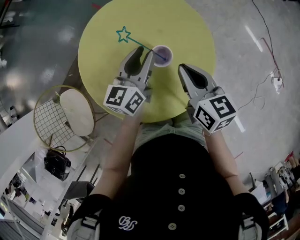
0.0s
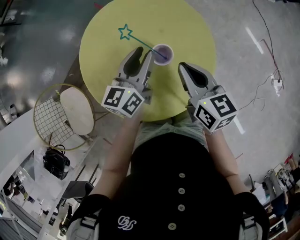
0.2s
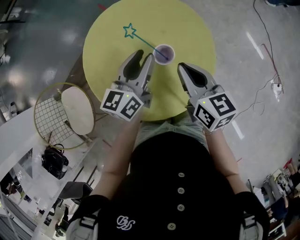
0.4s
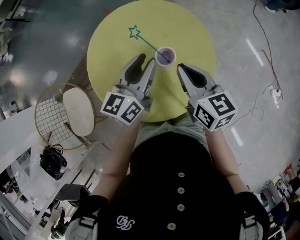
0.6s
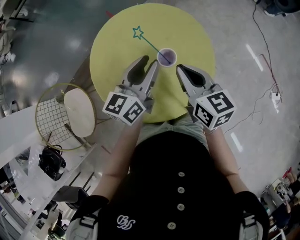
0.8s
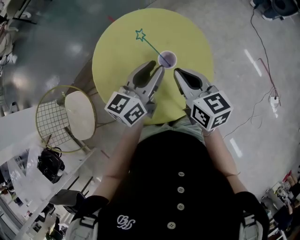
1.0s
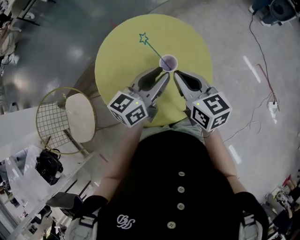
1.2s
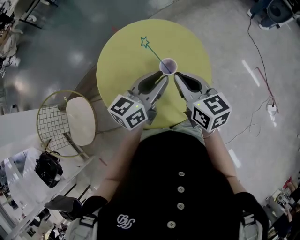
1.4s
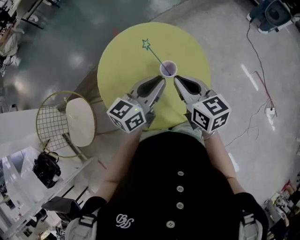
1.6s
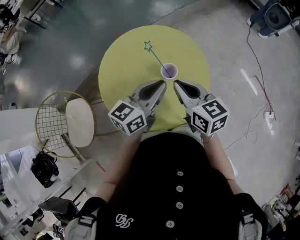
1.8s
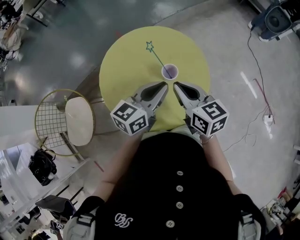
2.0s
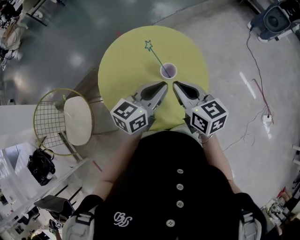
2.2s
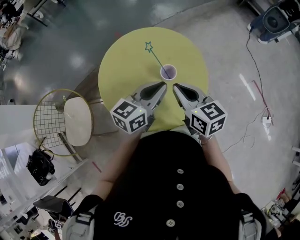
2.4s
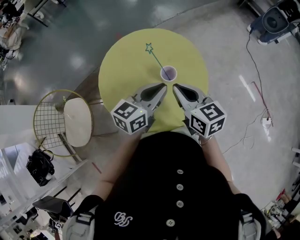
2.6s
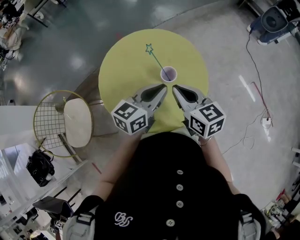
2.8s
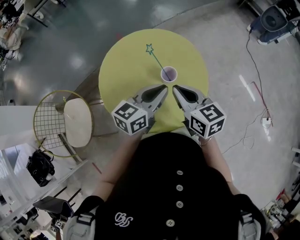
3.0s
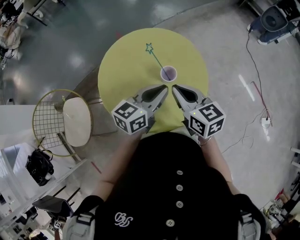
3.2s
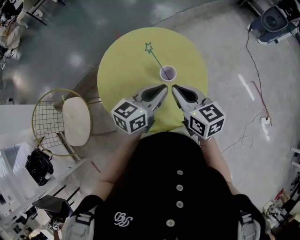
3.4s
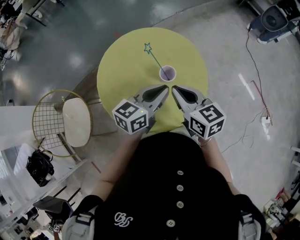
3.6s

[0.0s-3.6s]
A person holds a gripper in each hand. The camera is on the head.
0.0s to 1.8s: The right gripper is displaced upward by roughly 5 cm. The left gripper moves backward and upward, some 15 cm, and closes its fingers.
1.8s to 3.6s: The grippers move only a little.

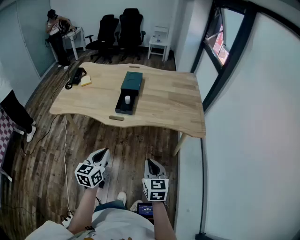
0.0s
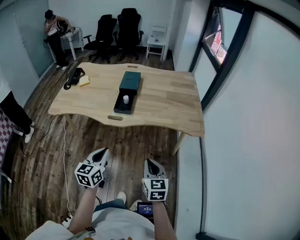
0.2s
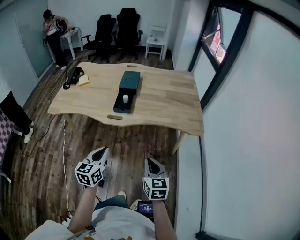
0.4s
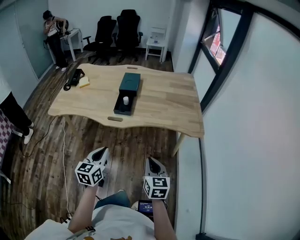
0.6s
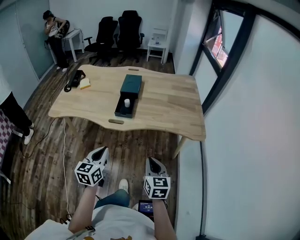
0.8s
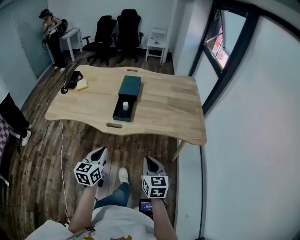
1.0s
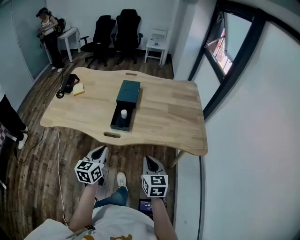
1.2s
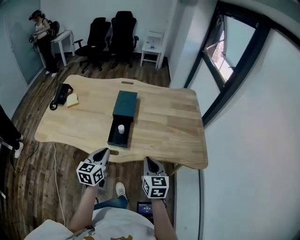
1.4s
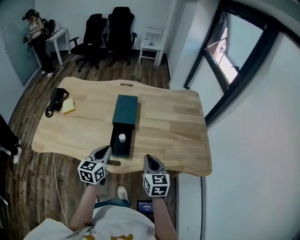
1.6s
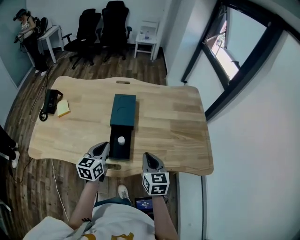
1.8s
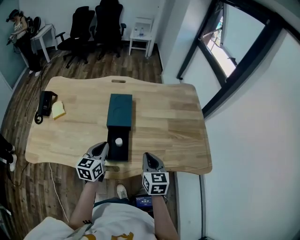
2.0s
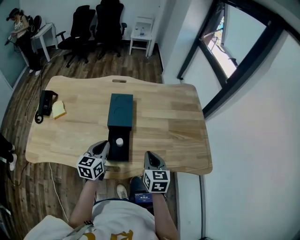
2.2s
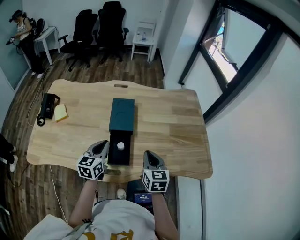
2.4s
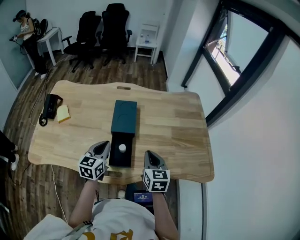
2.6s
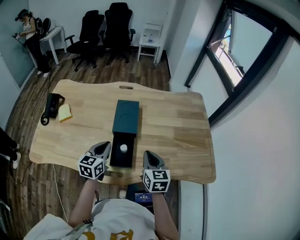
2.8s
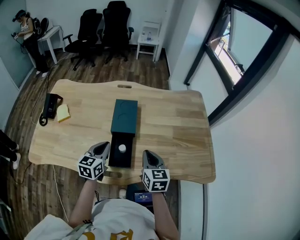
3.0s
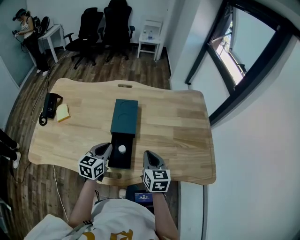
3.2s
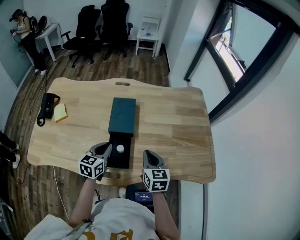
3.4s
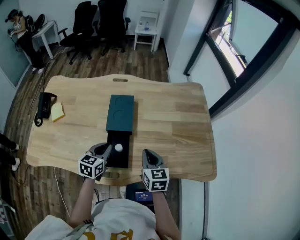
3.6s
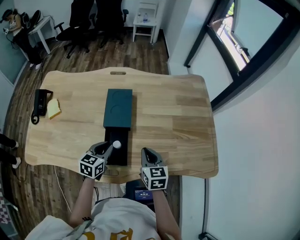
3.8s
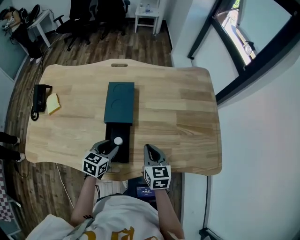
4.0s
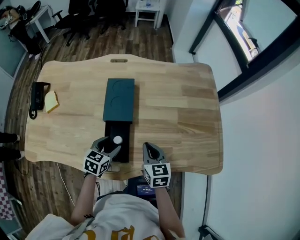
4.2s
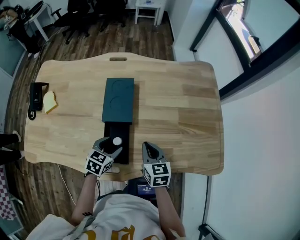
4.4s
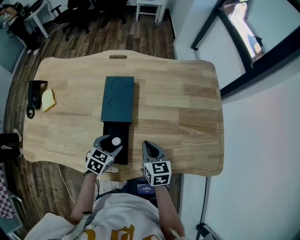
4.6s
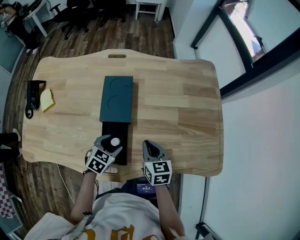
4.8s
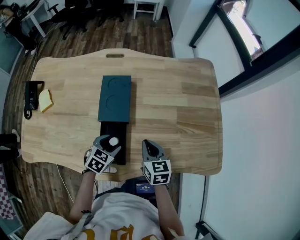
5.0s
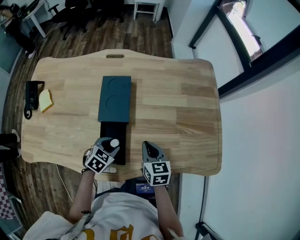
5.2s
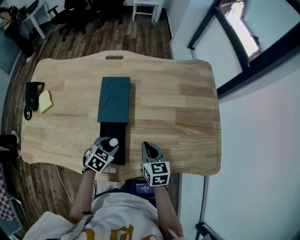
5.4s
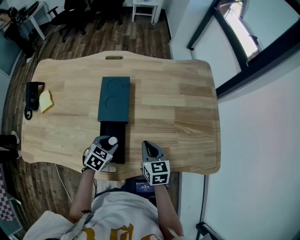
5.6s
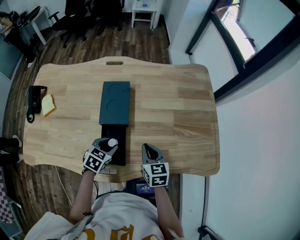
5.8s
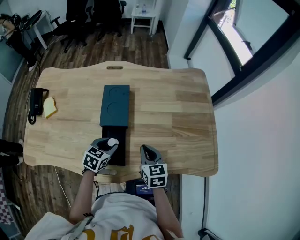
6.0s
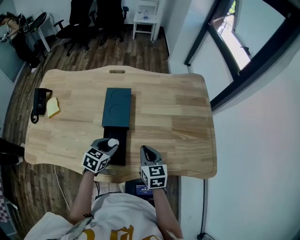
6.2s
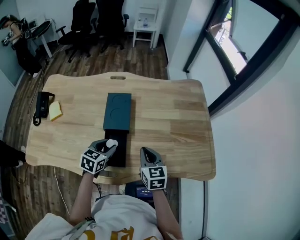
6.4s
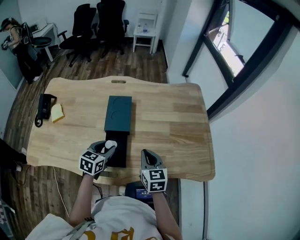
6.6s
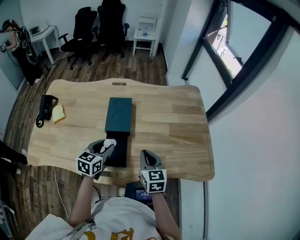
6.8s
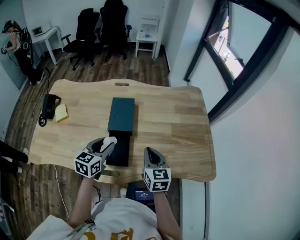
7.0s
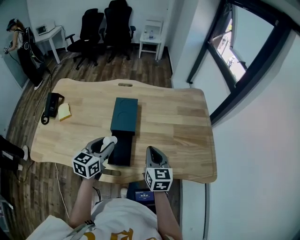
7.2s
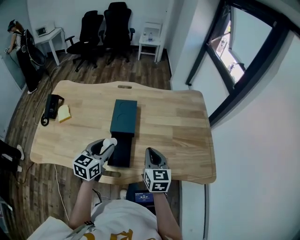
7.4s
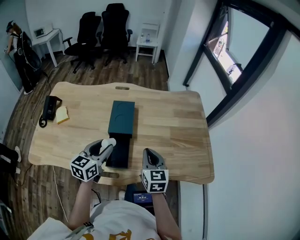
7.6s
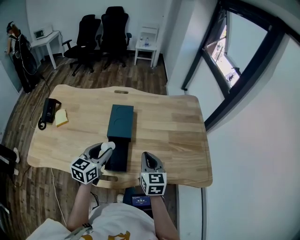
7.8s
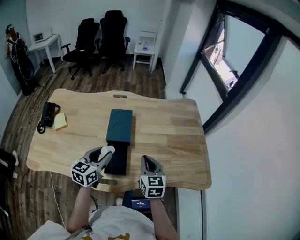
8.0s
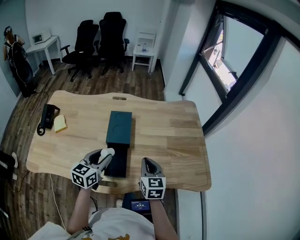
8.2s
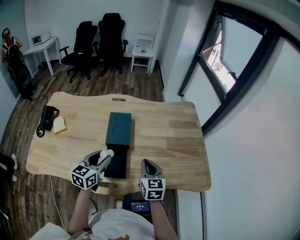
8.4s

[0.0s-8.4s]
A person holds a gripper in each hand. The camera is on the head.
0.0s to 1.4s: The two grippers go roughly 25 cm forward.
1.4s to 2.8s: Both grippers travel together forward, about 20 cm.
2.8s to 4.2s: The left gripper moves downward and to the right, some 15 cm, rotates roughly 20 degrees, and opens up. Meanwhile the right gripper travels downward by roughly 10 cm.
5.6s to 7.0s: The left gripper moves upward, some 20 cm, and changes its angle by roughly 30 degrees. The right gripper shifts about 10 cm upward.
7.0s to 8.4s: The grippers move only a little.

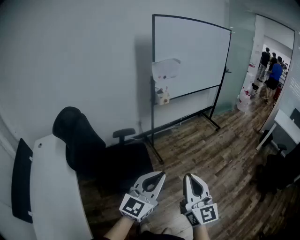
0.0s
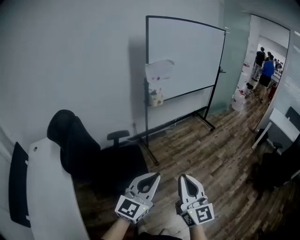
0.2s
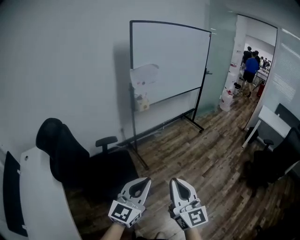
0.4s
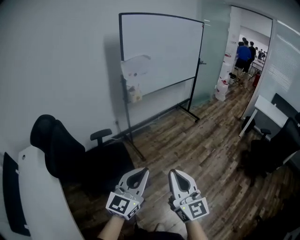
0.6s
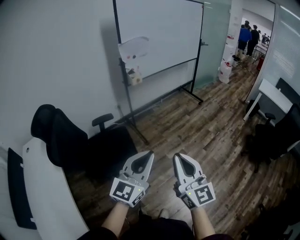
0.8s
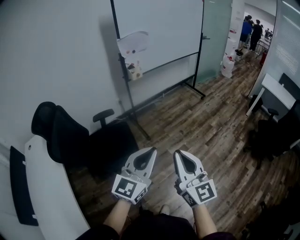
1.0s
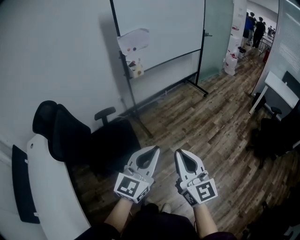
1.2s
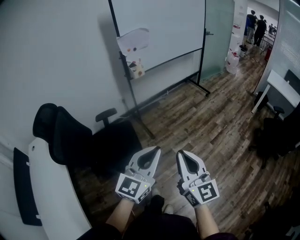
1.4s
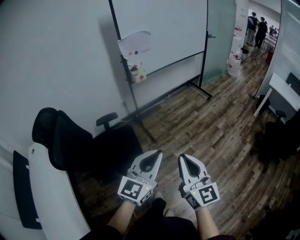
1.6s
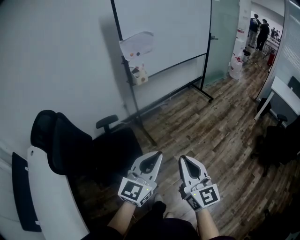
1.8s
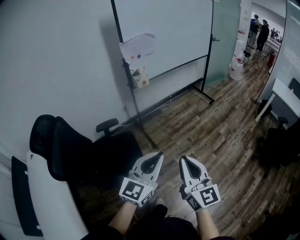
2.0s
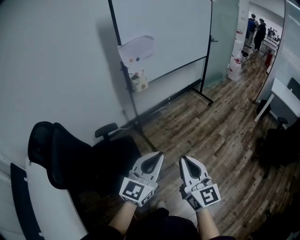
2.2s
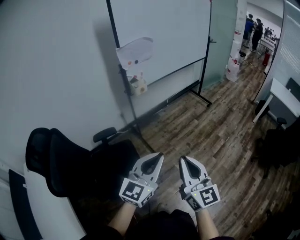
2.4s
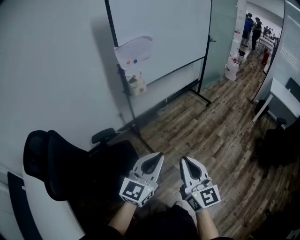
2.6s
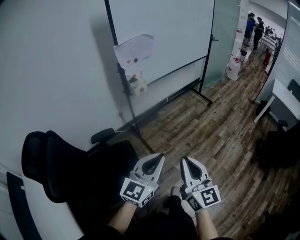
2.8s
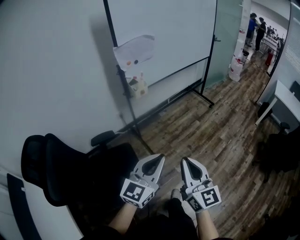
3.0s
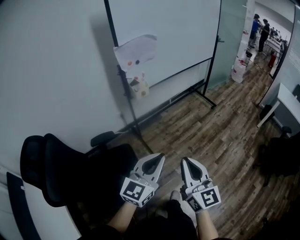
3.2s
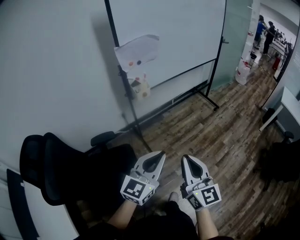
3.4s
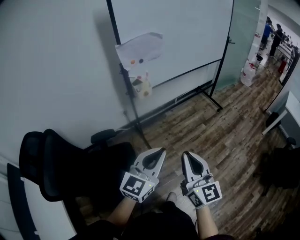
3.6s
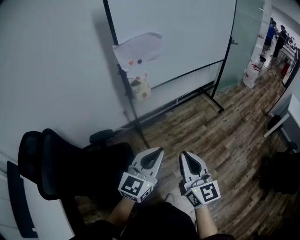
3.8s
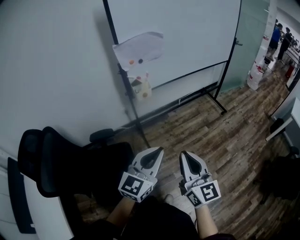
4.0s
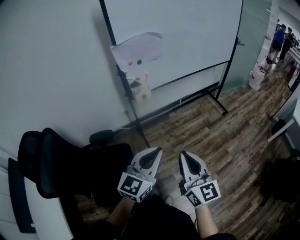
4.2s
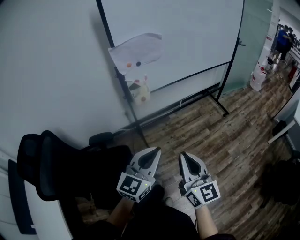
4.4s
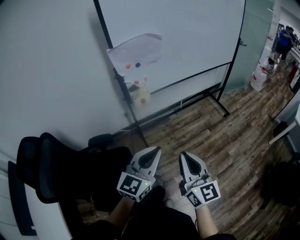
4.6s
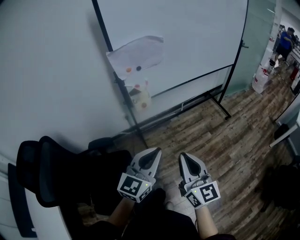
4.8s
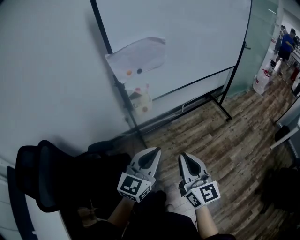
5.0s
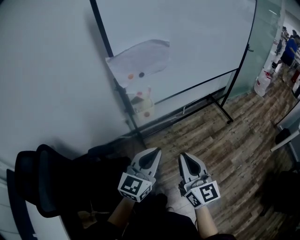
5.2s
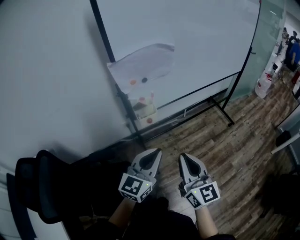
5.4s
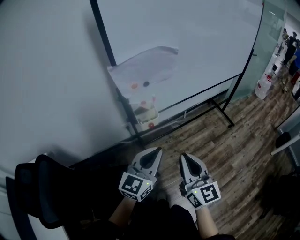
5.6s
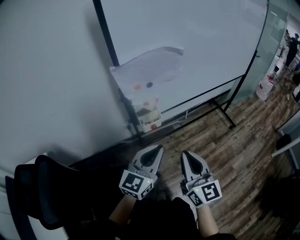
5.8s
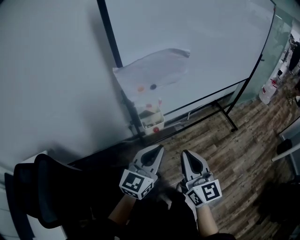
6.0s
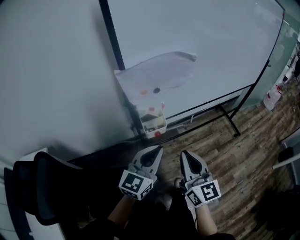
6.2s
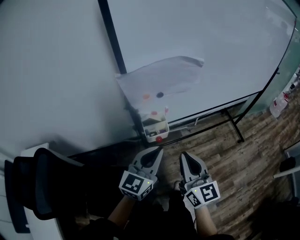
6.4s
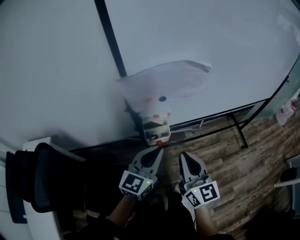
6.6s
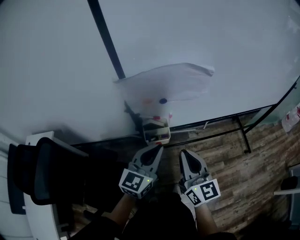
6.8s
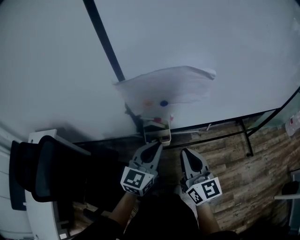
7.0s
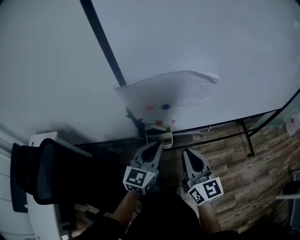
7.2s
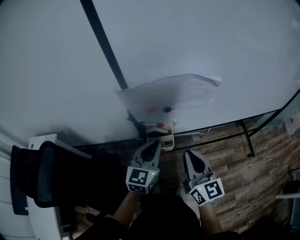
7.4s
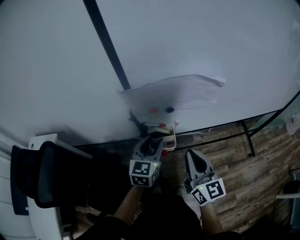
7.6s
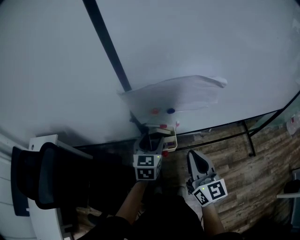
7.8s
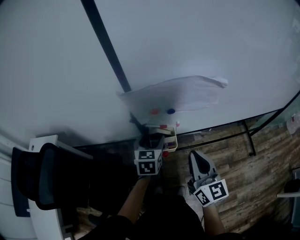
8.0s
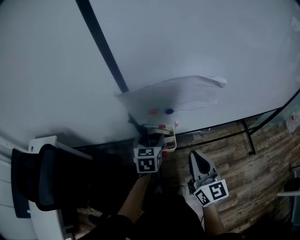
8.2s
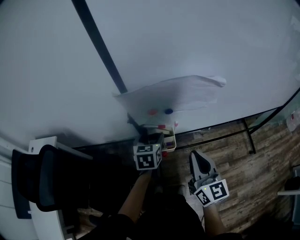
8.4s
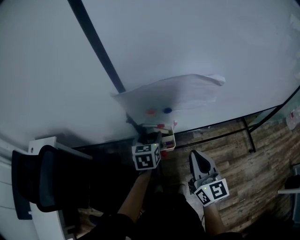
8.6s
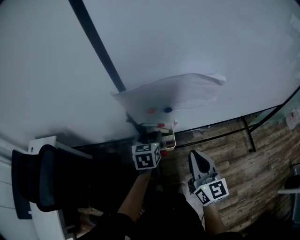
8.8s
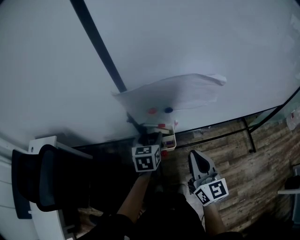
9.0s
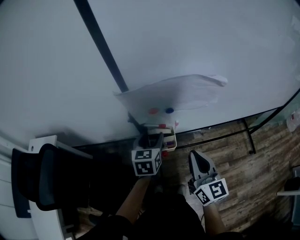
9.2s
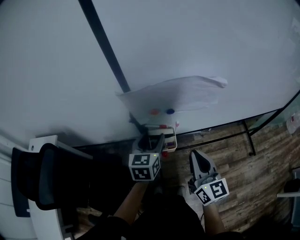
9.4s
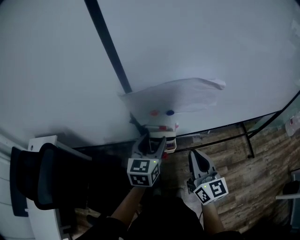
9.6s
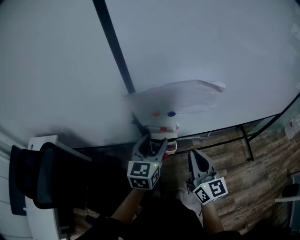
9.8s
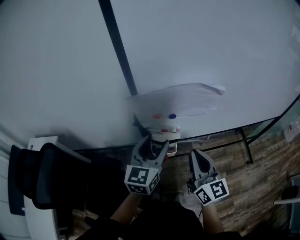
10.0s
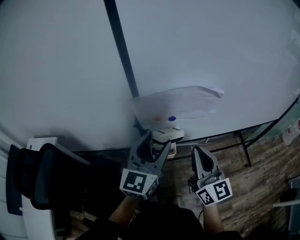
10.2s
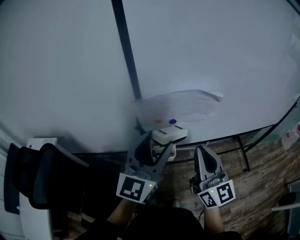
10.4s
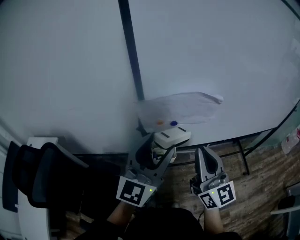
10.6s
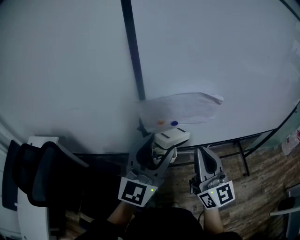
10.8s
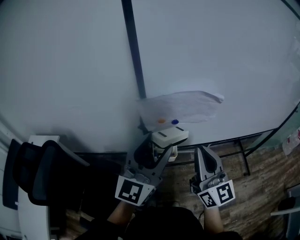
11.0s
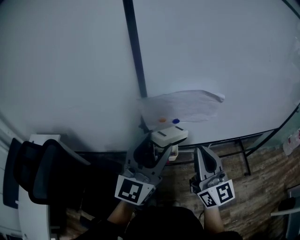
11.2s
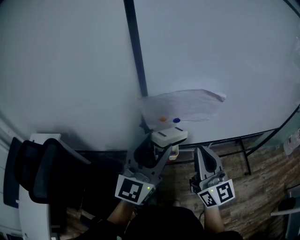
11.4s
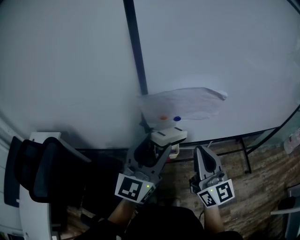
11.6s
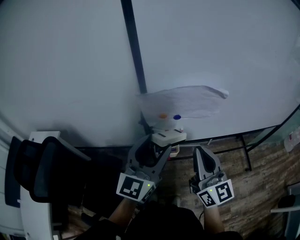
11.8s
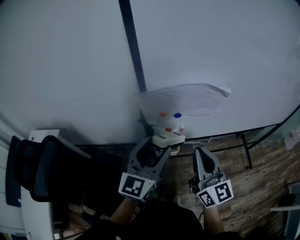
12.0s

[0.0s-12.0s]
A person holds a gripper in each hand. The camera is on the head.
0.0s to 1.6s: The right gripper is displaced to the right, forward and downward by some 15 cm; the left gripper moves to the right and forward, approximately 15 cm.
1.6s to 3.0s: Both grippers travel together forward, approximately 20 cm.
3.0s to 4.4s: Both grippers travel together forward, approximately 20 cm.
4.4s to 6.0s: The two grippers go roughly 25 cm forward.
6.0s to 7.6s: The grippers both shift forward by about 20 cm. The left gripper rotates some 30 degrees, and opens up.
7.6s to 9.0s: The left gripper ends up roughly 5 cm from where it was, and opens its fingers.
9.0s to 10.4s: The right gripper travels upward by approximately 15 cm, while the left gripper shifts roughly 25 cm upward and backward, and tips its fingers upward by about 40 degrees.
10.4s to 12.0s: The left gripper travels downward by approximately 5 cm.
